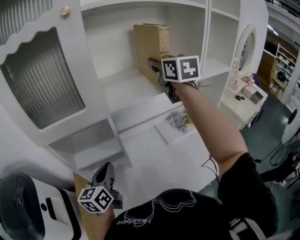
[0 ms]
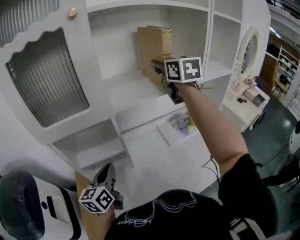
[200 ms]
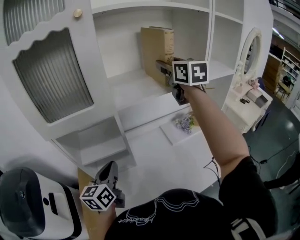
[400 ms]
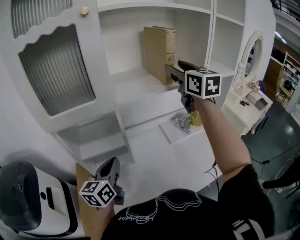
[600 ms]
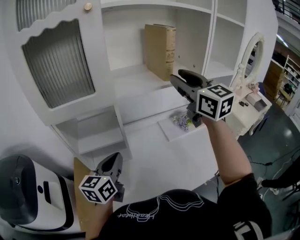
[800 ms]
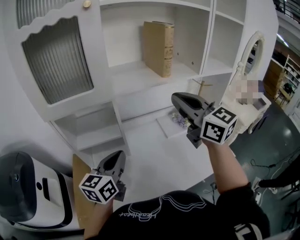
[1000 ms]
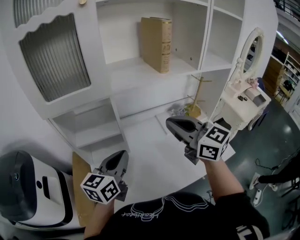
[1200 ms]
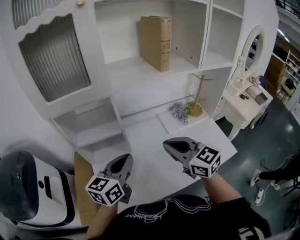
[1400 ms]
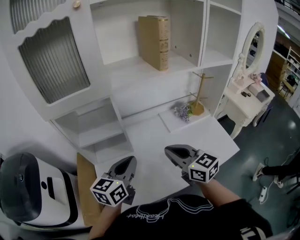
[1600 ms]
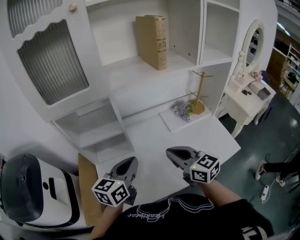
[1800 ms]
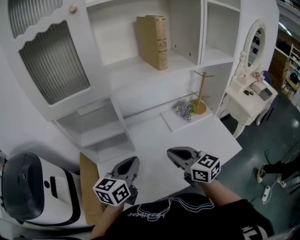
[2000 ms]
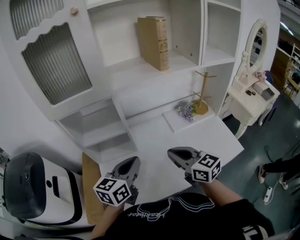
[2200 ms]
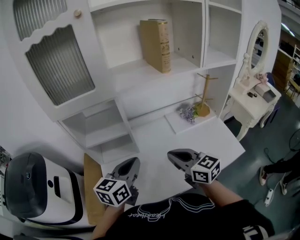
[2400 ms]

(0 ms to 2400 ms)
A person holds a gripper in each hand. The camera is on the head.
0 ms - 1200 ms: The right gripper shifts approximately 30 cm backward and downward, turns by about 30 degrees, and closes up, while the left gripper goes approximately 10 cm to the right and backward.
1200 ms - 2400 ms: The right gripper shifts approximately 15 cm downward and backward.

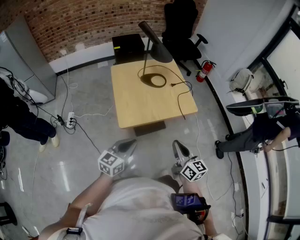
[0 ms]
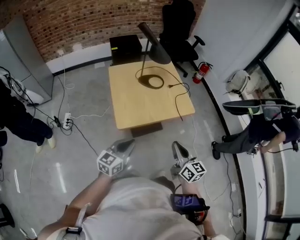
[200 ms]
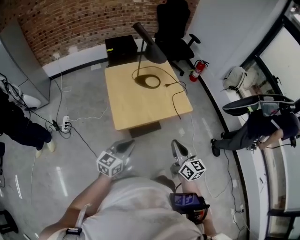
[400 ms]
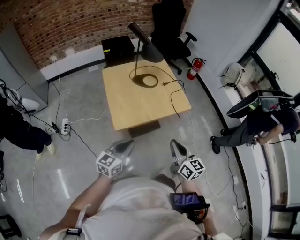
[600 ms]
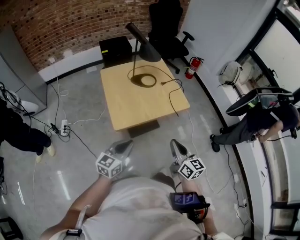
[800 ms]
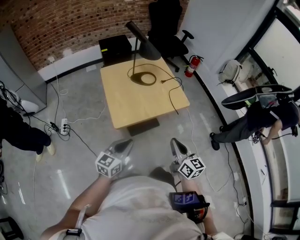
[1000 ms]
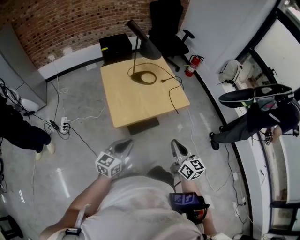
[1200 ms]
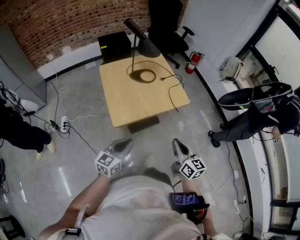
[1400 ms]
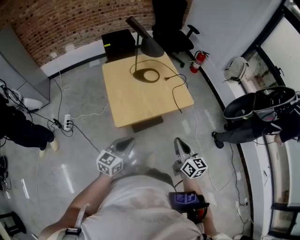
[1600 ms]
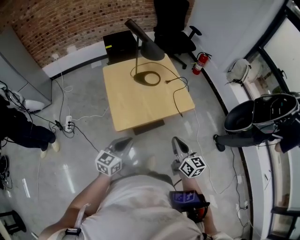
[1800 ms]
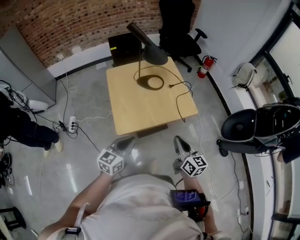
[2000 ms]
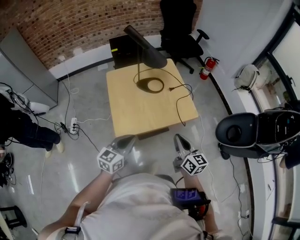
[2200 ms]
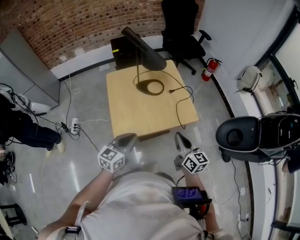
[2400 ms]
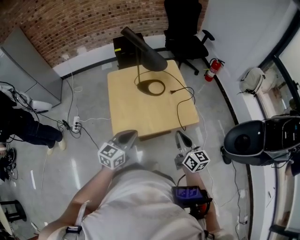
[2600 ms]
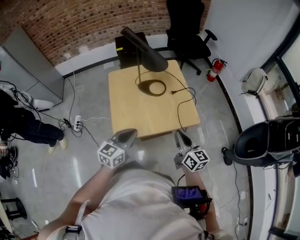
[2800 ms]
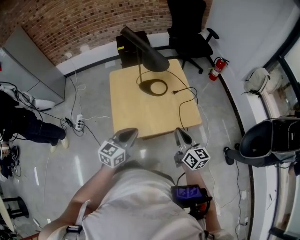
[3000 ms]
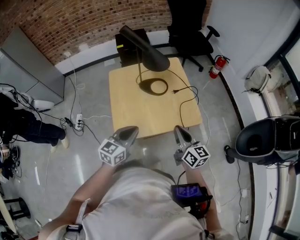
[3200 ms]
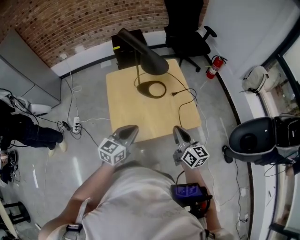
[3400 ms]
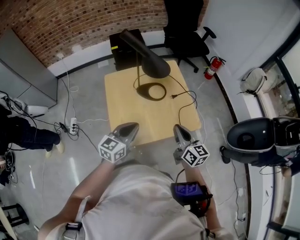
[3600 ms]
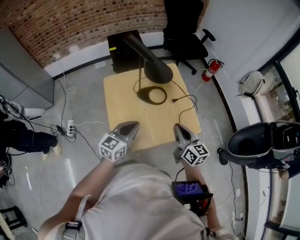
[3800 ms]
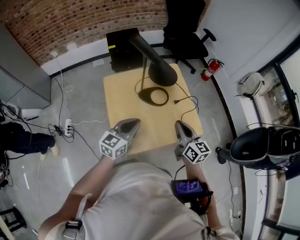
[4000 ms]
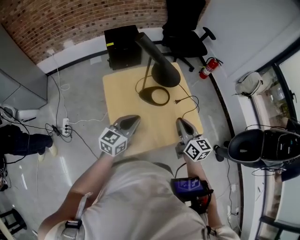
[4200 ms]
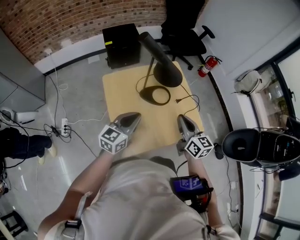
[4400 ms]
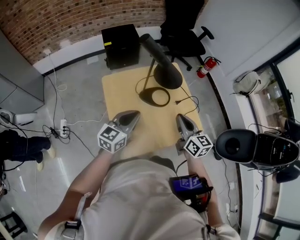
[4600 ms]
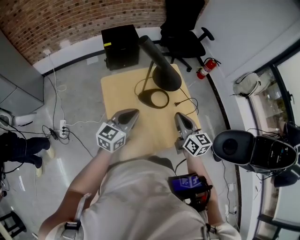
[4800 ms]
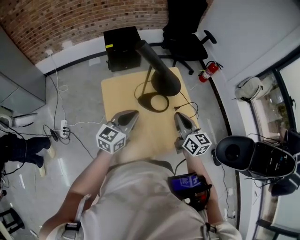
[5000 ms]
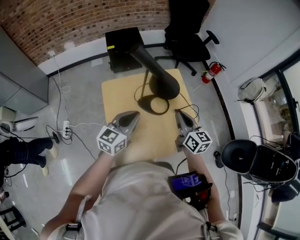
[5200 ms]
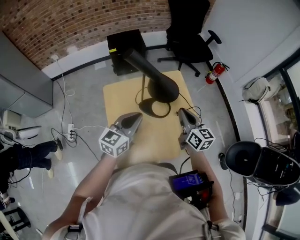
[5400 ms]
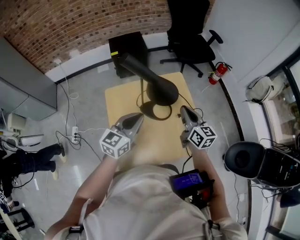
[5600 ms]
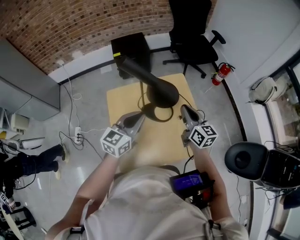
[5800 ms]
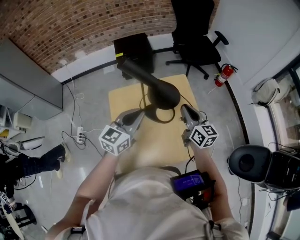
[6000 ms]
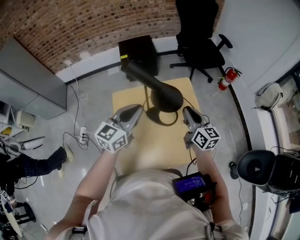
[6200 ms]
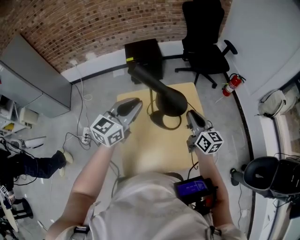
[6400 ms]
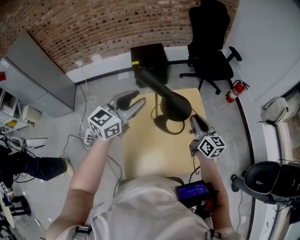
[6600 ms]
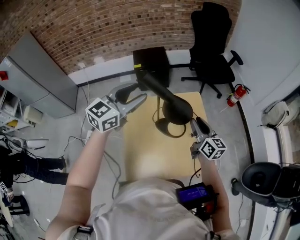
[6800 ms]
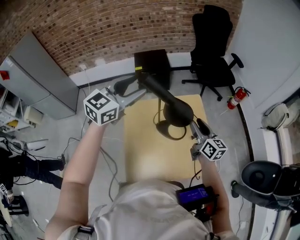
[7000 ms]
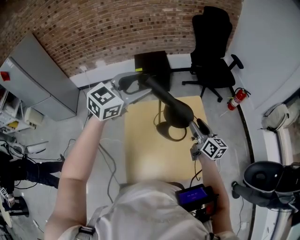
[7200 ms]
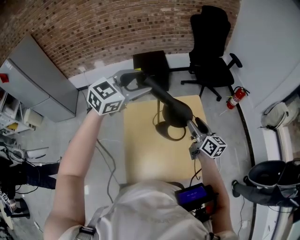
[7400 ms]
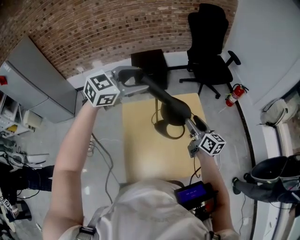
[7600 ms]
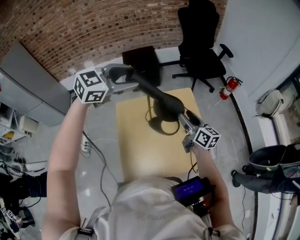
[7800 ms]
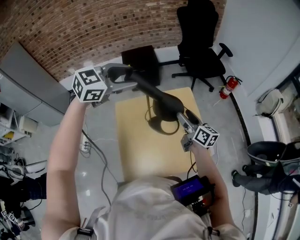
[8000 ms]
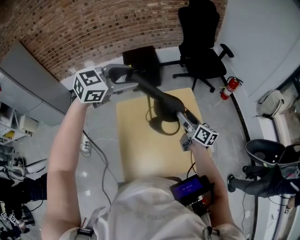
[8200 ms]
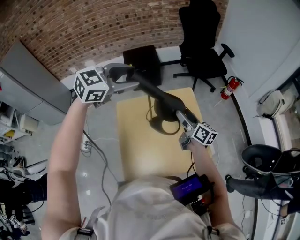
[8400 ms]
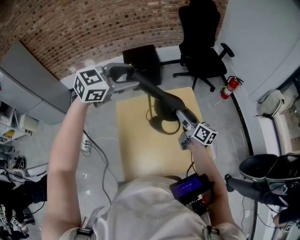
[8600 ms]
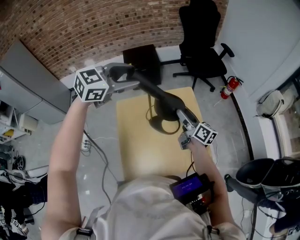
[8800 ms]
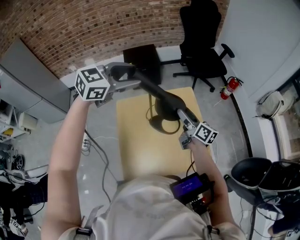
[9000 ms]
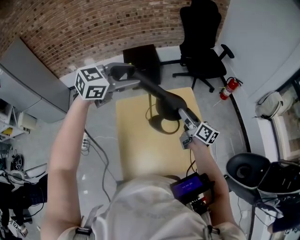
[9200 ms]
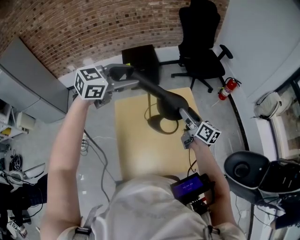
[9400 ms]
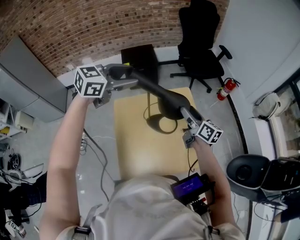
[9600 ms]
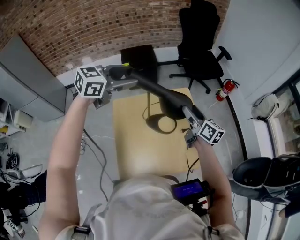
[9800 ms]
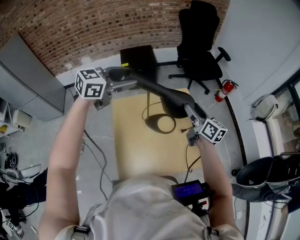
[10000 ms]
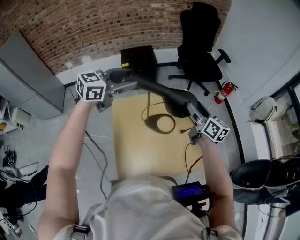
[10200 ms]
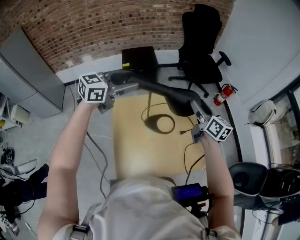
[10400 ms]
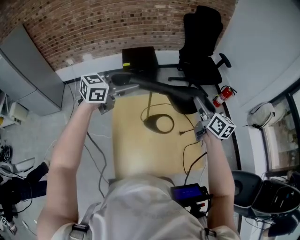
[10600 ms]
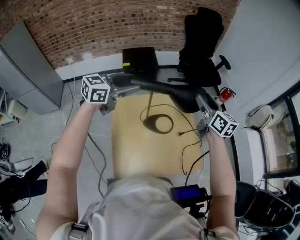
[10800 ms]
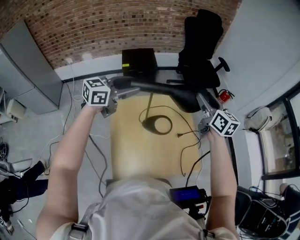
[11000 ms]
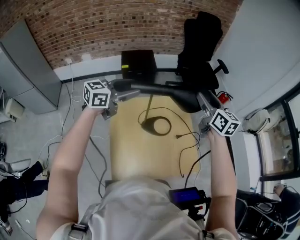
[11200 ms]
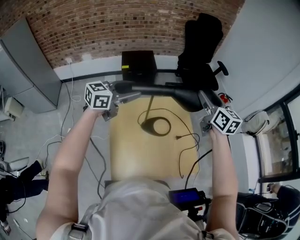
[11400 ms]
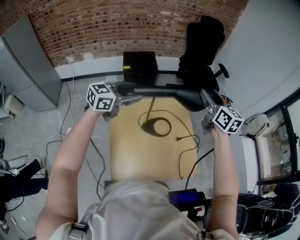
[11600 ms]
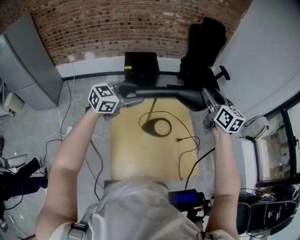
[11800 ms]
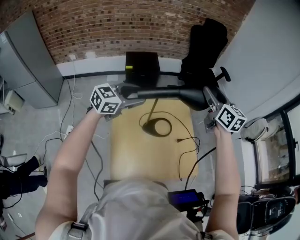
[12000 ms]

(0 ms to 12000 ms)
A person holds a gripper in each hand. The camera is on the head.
0 ms - 1600 ms: The grippers stay close to where they were, moving slightly.
1600 ms - 3000 ms: Both grippers travel together forward, approximately 15 cm.
3000 ms - 4400 ms: The grippers both shift forward and to the left by some 20 cm.
4400 ms - 6000 ms: The right gripper heads forward, covering about 15 cm, while the left gripper moves forward and upward, approximately 10 cm.
6000 ms - 7600 ms: The left gripper travels upward and forward by approximately 20 cm, rotates roughly 30 degrees, and opens its fingers; the right gripper opens its fingers.
7600 ms - 9000 ms: The grippers move only a little.
9000 ms - 10400 ms: The right gripper goes about 10 cm upward and to the right.
10400 ms - 12000 ms: The right gripper moves upward, about 15 cm, and swivels about 20 degrees. The left gripper shifts about 5 cm downward.

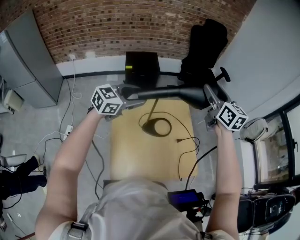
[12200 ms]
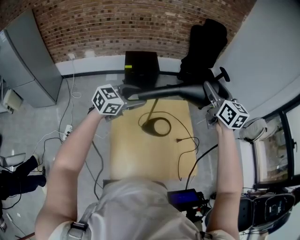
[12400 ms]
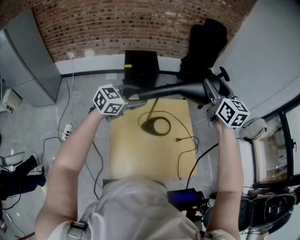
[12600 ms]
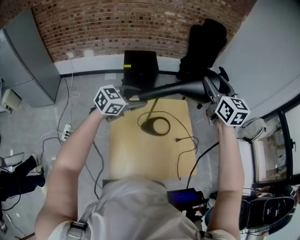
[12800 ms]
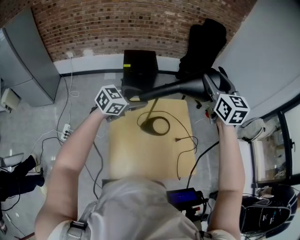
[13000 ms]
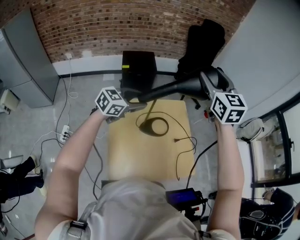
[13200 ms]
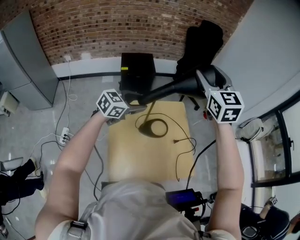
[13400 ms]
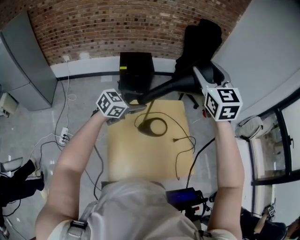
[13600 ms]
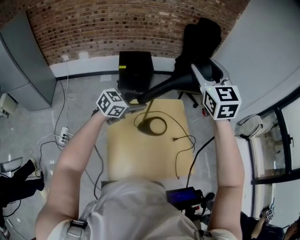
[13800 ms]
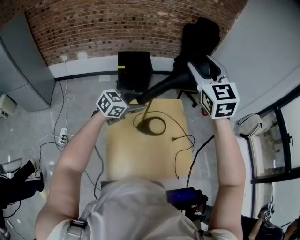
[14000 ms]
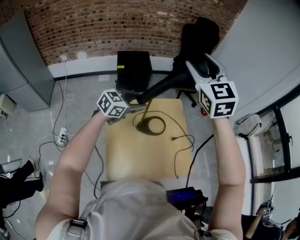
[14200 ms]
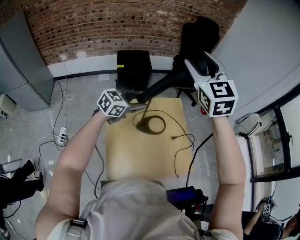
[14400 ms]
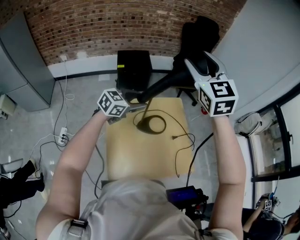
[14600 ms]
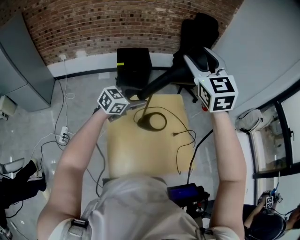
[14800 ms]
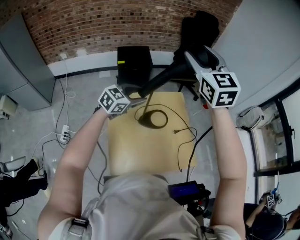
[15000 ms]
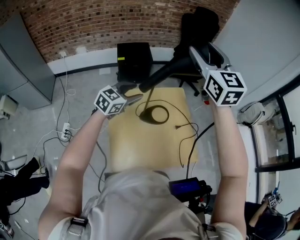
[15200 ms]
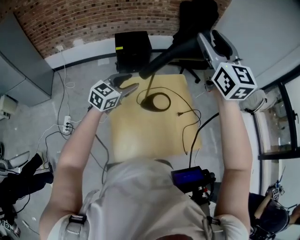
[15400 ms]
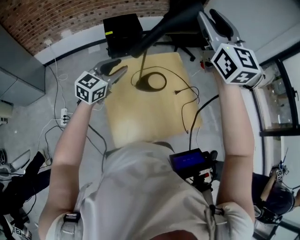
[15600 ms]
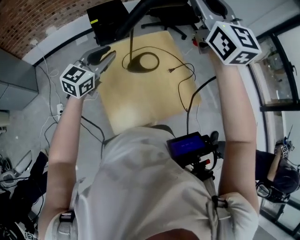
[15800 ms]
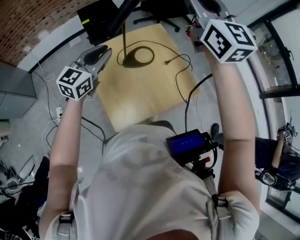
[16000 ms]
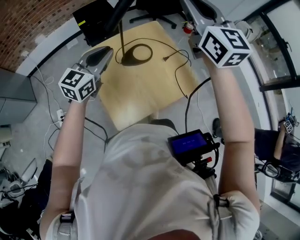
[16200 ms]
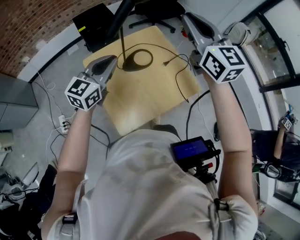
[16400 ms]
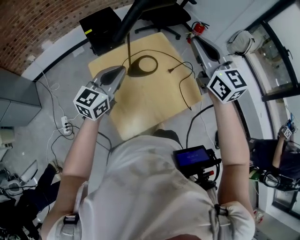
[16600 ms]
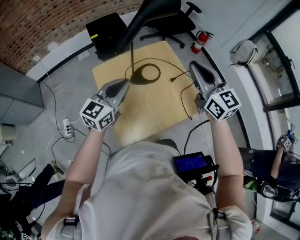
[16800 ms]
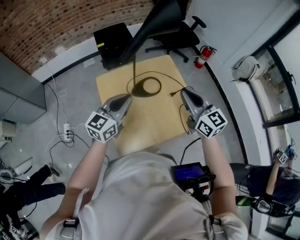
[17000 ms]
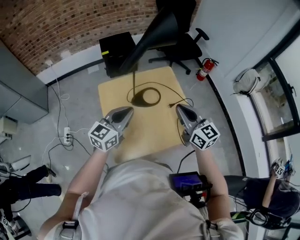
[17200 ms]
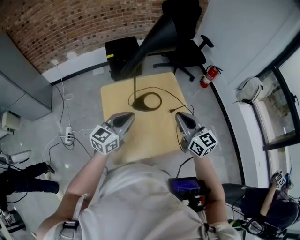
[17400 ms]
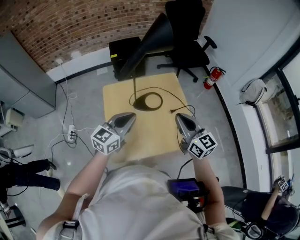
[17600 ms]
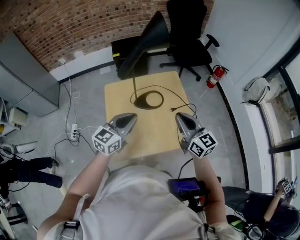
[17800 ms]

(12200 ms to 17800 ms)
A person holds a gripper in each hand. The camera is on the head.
12200 ms - 13600 ms: The left gripper shifts by about 5 cm. The right gripper heads upward and to the left, covering approximately 10 cm, and changes its angle by some 30 degrees.
13600 ms - 15000 ms: The grippers stay close to where they were, moving slightly.
15000 ms - 16400 ms: The right gripper goes roughly 20 cm backward, to the right and downward, and closes up; the left gripper shifts approximately 10 cm backward, and closes its fingers.
16400 ms - 17800 ms: The right gripper shifts approximately 20 cm downward, and changes its angle by some 30 degrees; the left gripper moves to the right and backward, about 10 cm.

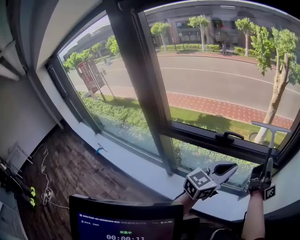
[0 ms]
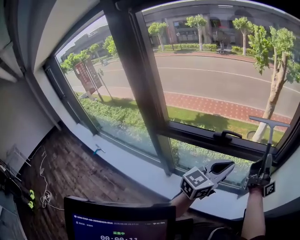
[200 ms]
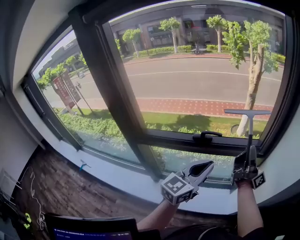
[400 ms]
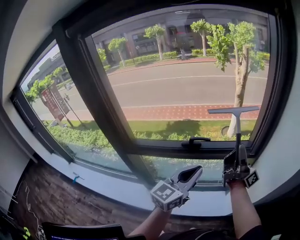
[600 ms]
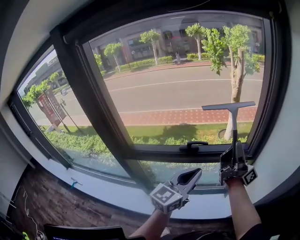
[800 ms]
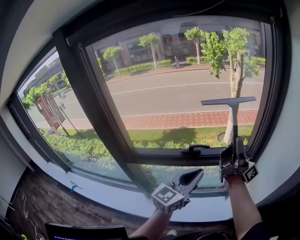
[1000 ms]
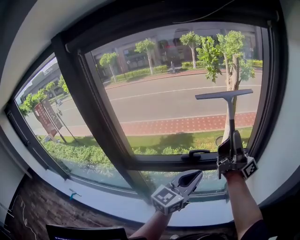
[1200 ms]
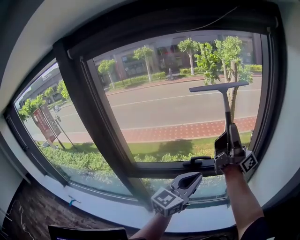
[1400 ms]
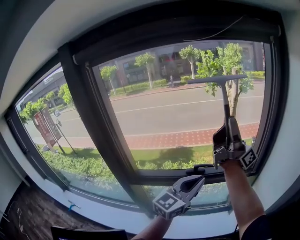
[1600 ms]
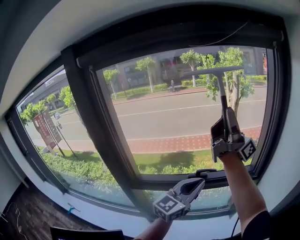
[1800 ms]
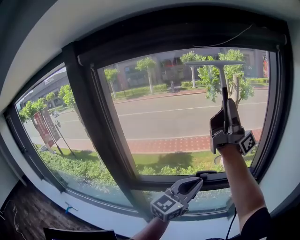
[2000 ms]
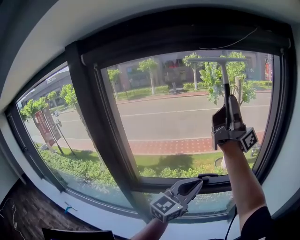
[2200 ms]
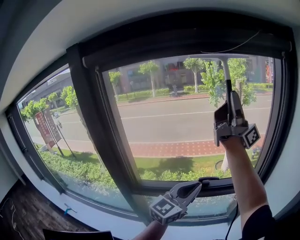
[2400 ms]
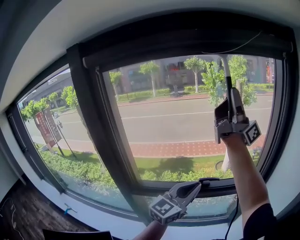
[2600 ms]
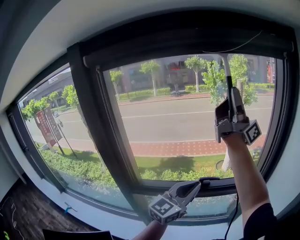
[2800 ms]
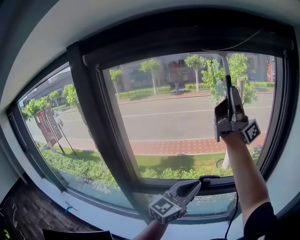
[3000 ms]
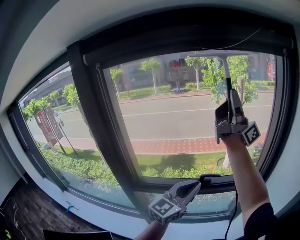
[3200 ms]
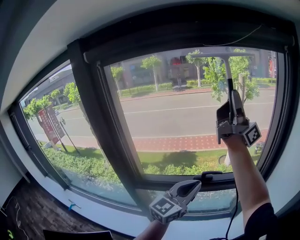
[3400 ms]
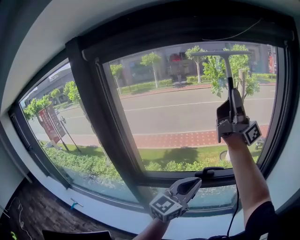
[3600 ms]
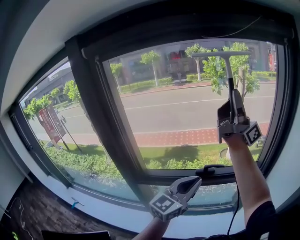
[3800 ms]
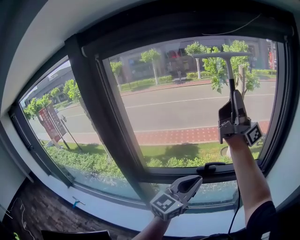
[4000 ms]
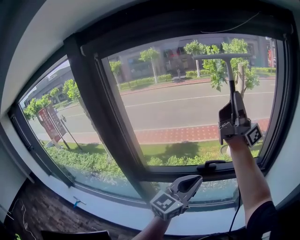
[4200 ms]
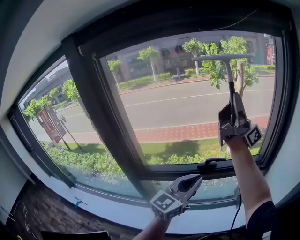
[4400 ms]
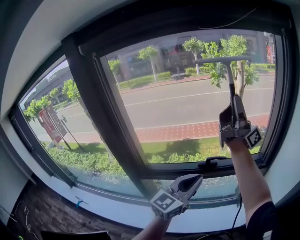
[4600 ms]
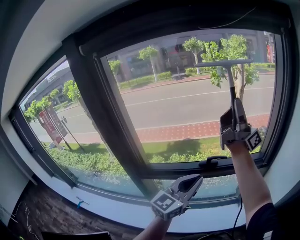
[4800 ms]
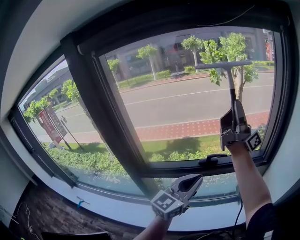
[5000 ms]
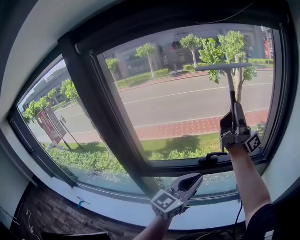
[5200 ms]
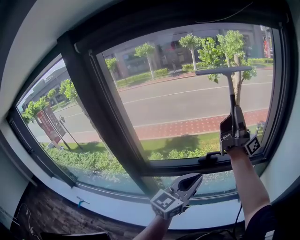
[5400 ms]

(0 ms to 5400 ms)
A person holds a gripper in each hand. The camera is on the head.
0 ms - 1400 ms: The left gripper ends up approximately 5 cm from where it was.
1400 ms - 2800 ms: The left gripper moves some 5 cm.
